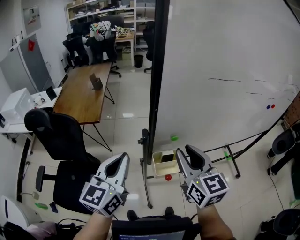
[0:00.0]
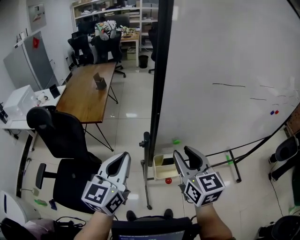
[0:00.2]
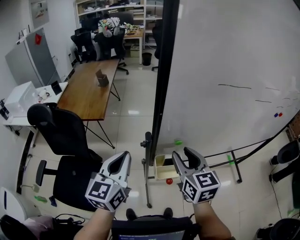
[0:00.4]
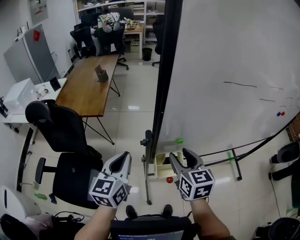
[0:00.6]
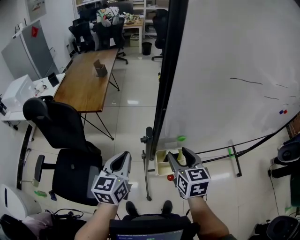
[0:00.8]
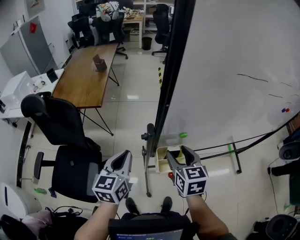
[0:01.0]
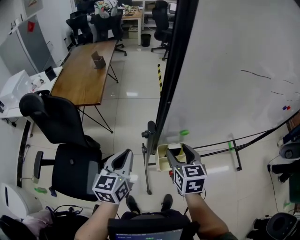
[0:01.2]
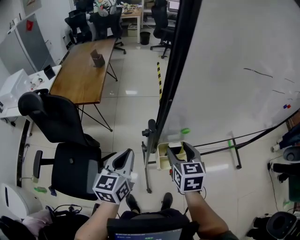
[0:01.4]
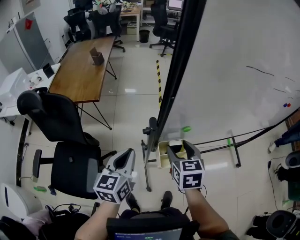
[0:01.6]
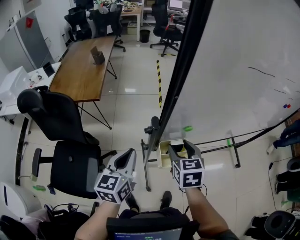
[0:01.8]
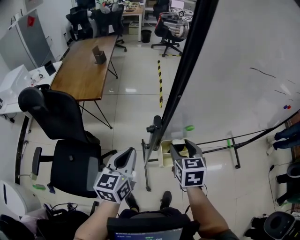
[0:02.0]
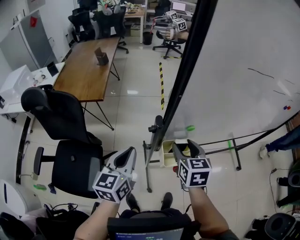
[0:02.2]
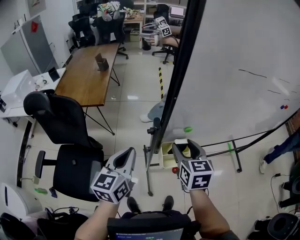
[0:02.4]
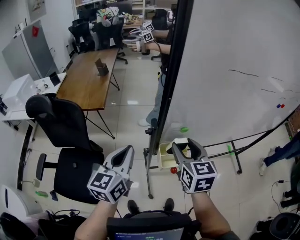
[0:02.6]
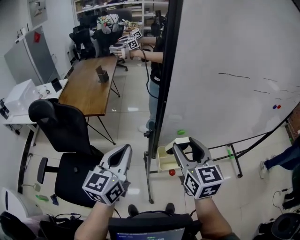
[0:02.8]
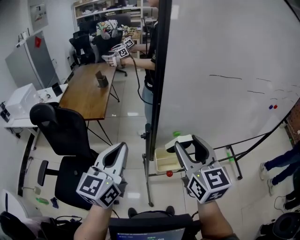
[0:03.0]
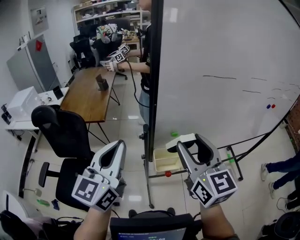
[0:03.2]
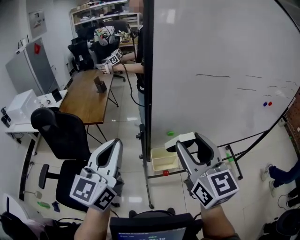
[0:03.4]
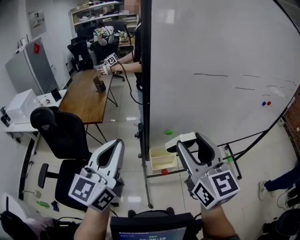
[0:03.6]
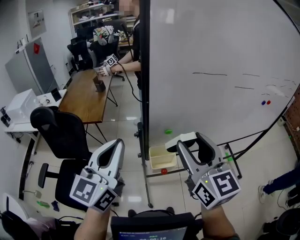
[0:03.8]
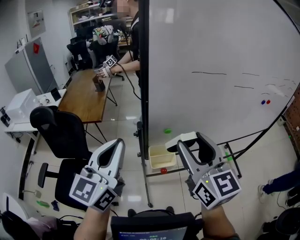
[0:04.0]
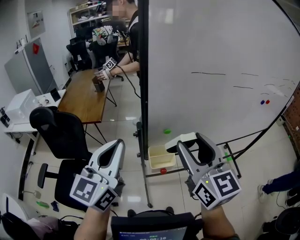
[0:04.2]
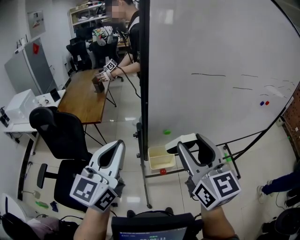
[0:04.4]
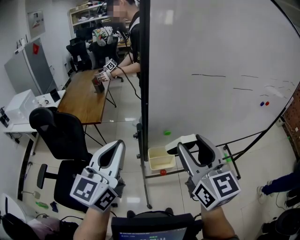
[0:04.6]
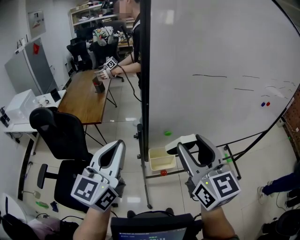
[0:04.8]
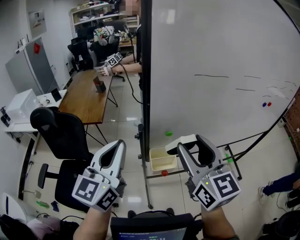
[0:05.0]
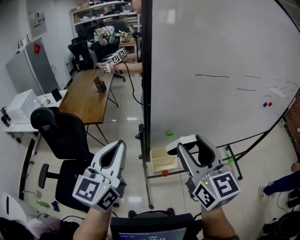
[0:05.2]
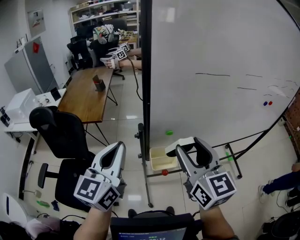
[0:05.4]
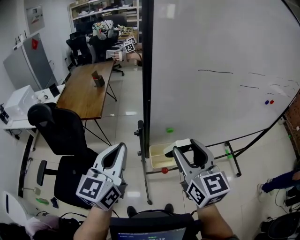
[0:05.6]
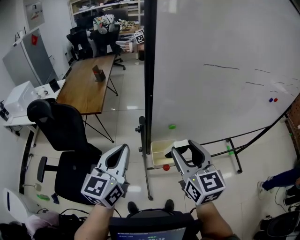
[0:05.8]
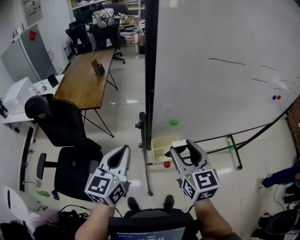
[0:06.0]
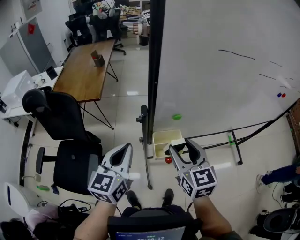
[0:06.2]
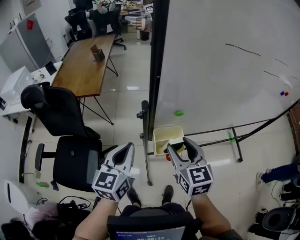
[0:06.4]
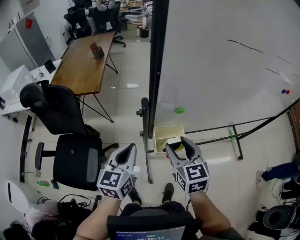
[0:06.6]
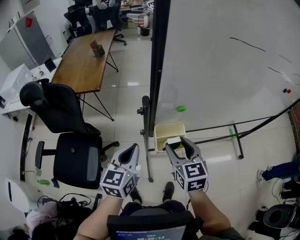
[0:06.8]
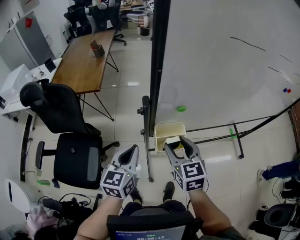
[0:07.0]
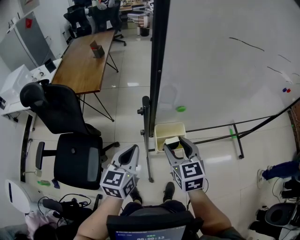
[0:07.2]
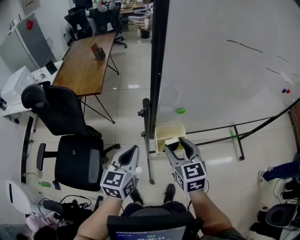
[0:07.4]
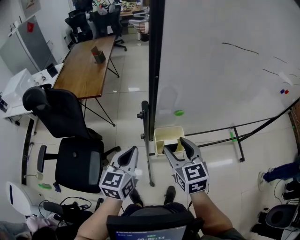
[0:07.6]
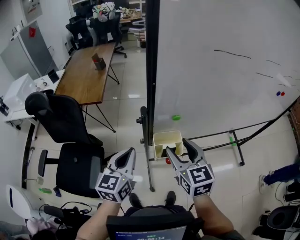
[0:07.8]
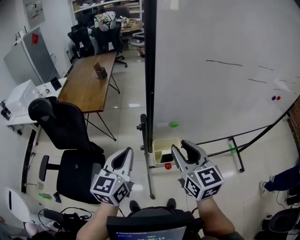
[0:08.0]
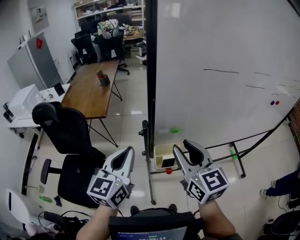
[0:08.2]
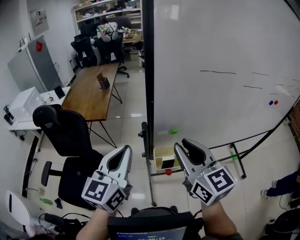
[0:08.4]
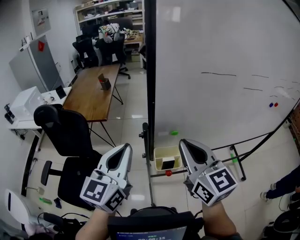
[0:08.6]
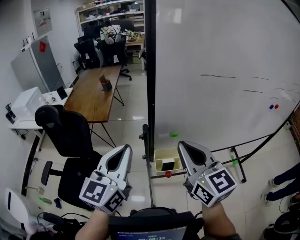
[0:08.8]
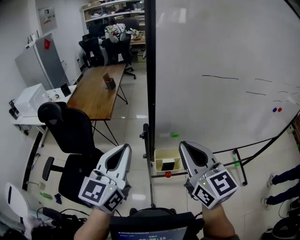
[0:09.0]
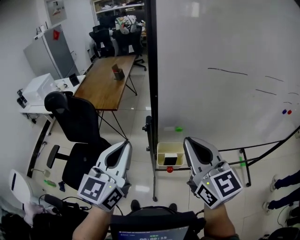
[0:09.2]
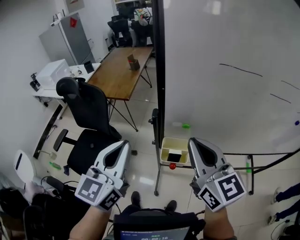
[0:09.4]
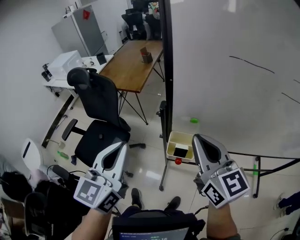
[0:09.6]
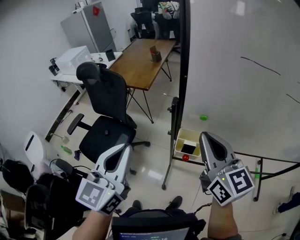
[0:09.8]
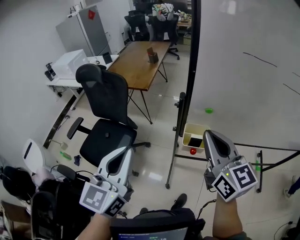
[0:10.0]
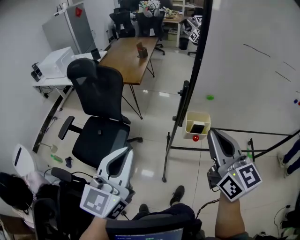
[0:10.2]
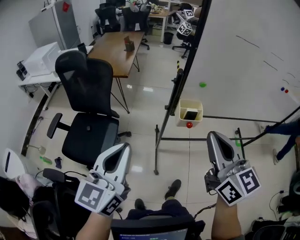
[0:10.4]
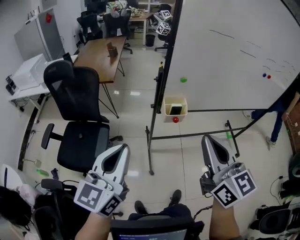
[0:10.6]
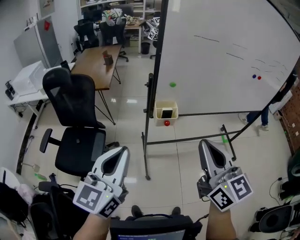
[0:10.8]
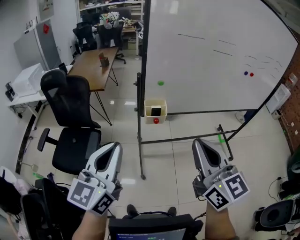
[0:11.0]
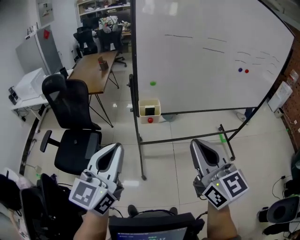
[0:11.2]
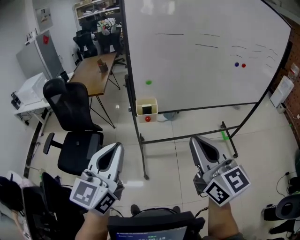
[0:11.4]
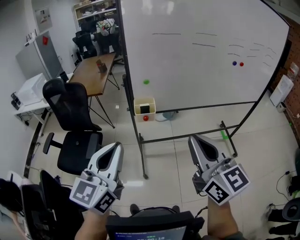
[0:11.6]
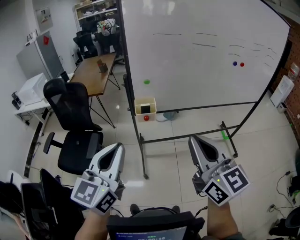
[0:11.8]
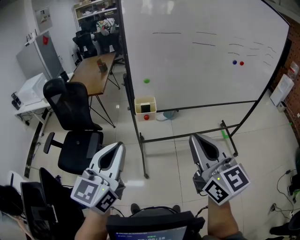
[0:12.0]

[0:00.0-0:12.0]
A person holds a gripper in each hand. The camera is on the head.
0:00.0 to 0:01.6: Both grippers move downward, some 15 cm. The right gripper rotates about 30 degrees, and opens.
0:01.6 to 0:03.0: The grippers both shift upward by some 20 cm. The right gripper swivels approximately 30 degrees.
0:03.0 to 0:04.4: The right gripper moves upward and backward, some 10 cm; the left gripper heads upward, covering approximately 5 cm.
0:04.4 to 0:06.0: The grippers both shift downward by roughly 15 cm.
0:06.0 to 0:07.6: The two grippers go roughly 10 cm downward.
0:07.6 to 0:09.0: Both grippers travel together upward, about 20 cm. The left gripper turns by some 20 degrees. Meanwhile the right gripper swivels about 30 degrees, and closes.
0:09.0 to 0:10.4: The grippers both shift backward and to the left by about 20 cm.
0:10.4 to 0:12.0: The grippers both shift to the right and backward by some 25 cm.

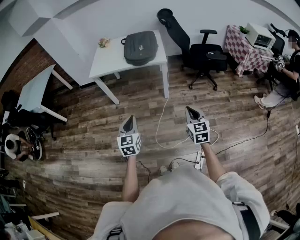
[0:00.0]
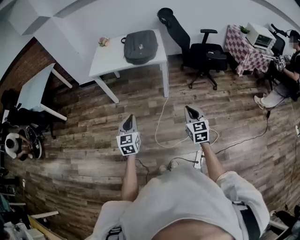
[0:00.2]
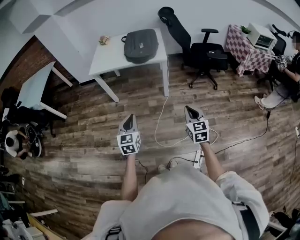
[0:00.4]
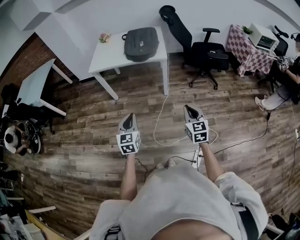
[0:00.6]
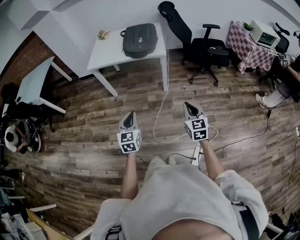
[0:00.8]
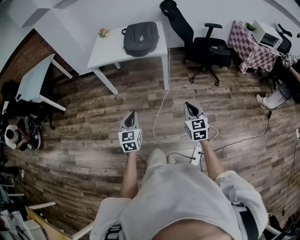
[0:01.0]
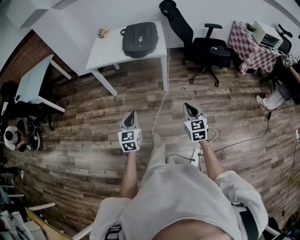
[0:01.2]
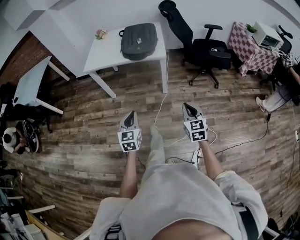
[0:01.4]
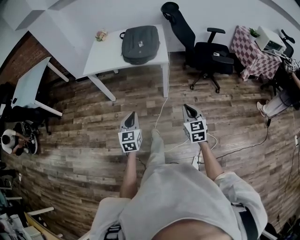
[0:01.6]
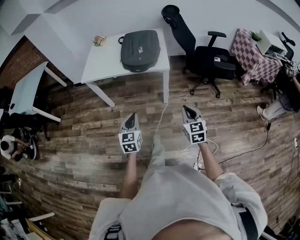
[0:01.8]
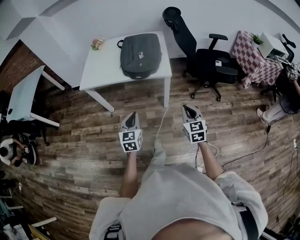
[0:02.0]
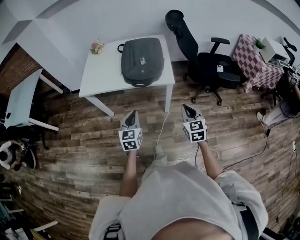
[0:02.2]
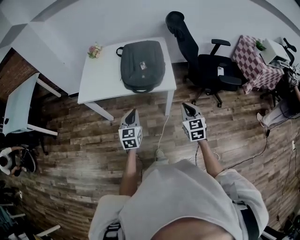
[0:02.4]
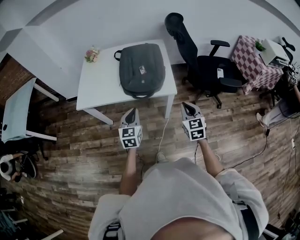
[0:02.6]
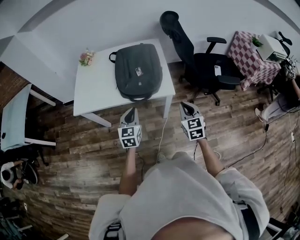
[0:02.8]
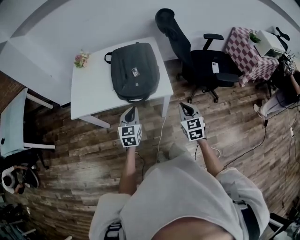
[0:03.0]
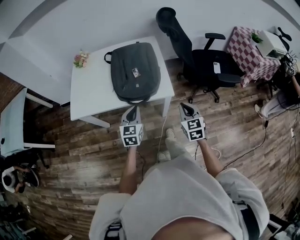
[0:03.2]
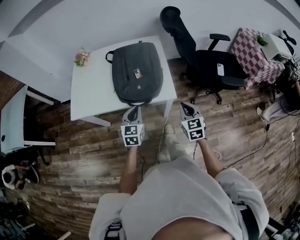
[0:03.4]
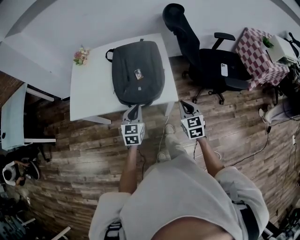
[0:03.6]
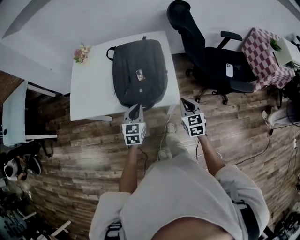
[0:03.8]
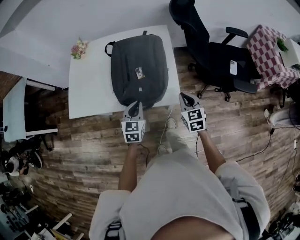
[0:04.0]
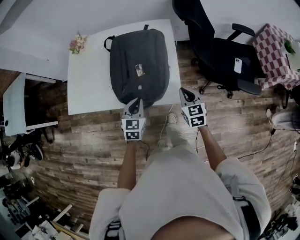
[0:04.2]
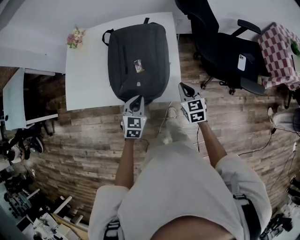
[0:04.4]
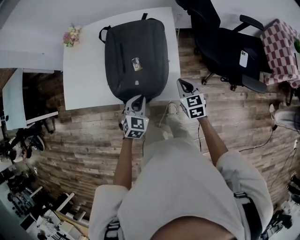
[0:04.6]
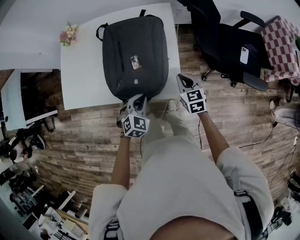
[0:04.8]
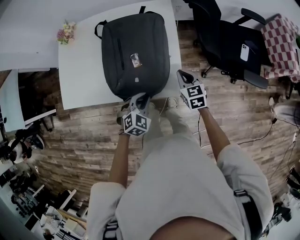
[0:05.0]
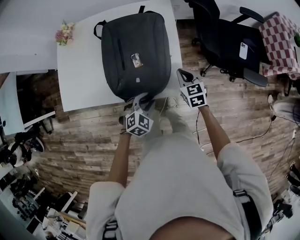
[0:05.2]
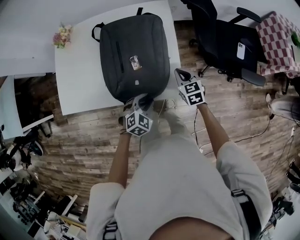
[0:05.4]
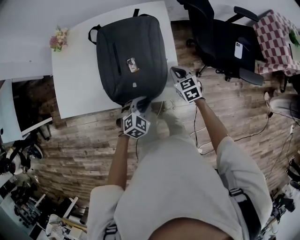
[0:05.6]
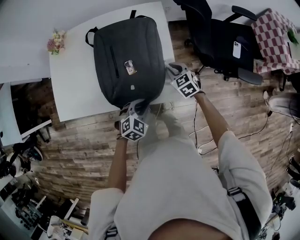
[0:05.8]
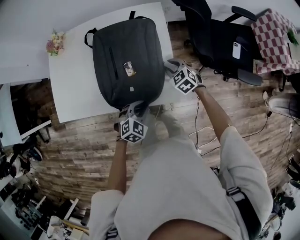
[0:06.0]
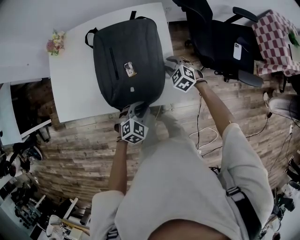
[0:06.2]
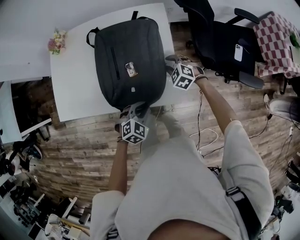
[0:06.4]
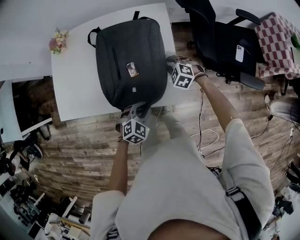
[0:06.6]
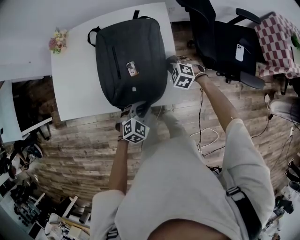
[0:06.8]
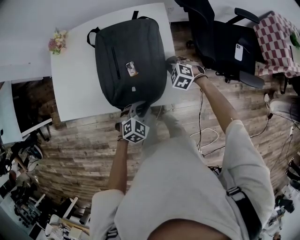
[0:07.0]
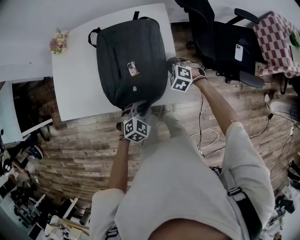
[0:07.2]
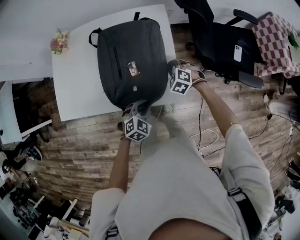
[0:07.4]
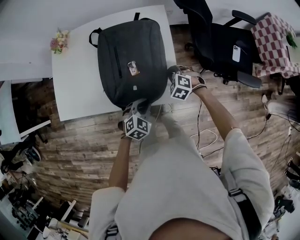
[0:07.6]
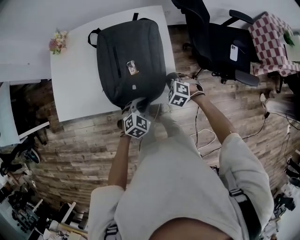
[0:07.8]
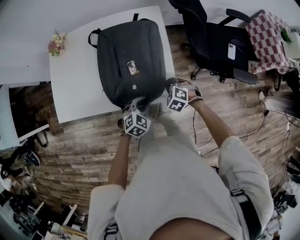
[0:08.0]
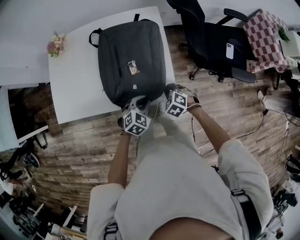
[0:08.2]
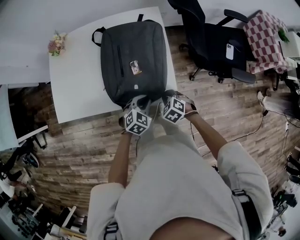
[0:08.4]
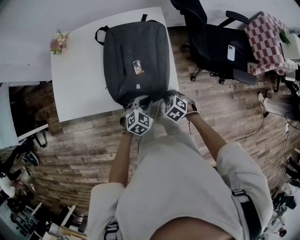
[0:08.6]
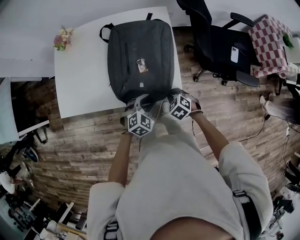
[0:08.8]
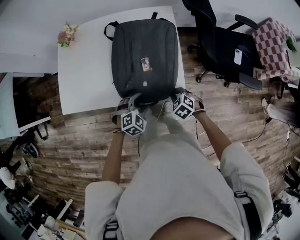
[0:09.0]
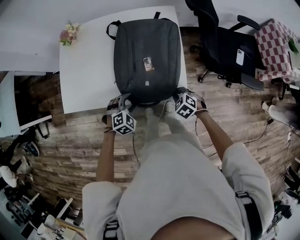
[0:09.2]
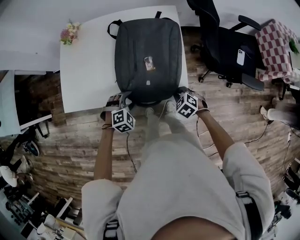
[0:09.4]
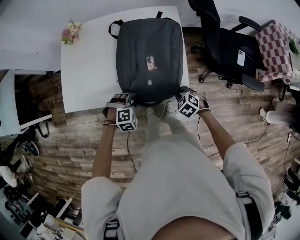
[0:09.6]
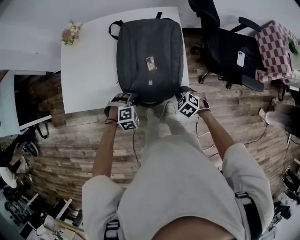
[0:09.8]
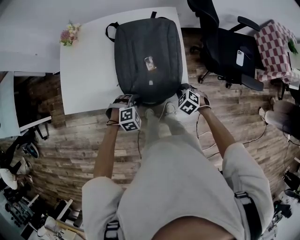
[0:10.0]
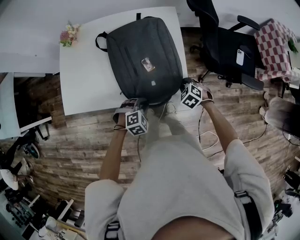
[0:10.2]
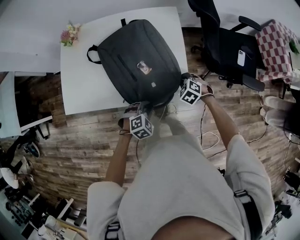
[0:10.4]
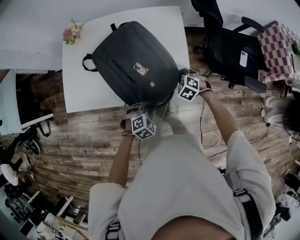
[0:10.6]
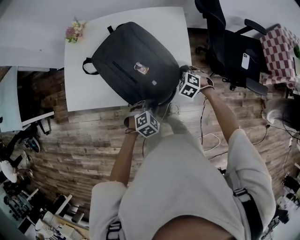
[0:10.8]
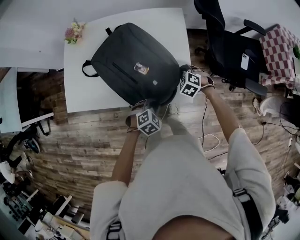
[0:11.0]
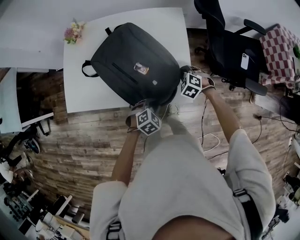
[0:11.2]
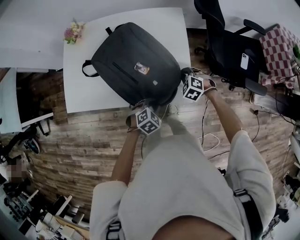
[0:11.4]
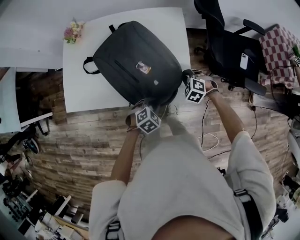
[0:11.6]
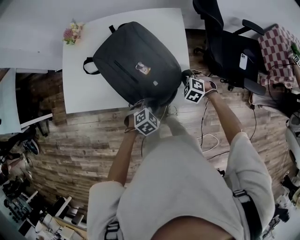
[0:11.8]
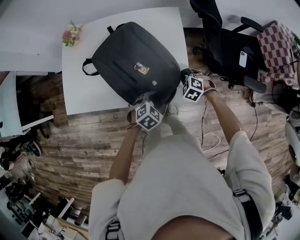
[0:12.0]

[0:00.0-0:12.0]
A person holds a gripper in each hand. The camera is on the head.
0:00.0 to 0:01.6: Both grippers travel together forward, roughly 10 cm.
0:01.6 to 0:03.0: The two grippers go roughly 40 cm forward.
0:03.0 to 0:04.4: The right gripper travels forward by about 25 cm; the left gripper goes some 20 cm forward and downward.
0:04.4 to 0:06.0: The left gripper goes roughly 5 cm downward, and rotates some 40 degrees; the right gripper is displaced forward and downward by some 15 cm, swivels approximately 30 degrees, and opens.
0:06.0 to 0:07.6: The right gripper rotates roughly 30 degrees, and closes up.
0:07.6 to 0:09.0: The right gripper shifts some 10 cm backward. The left gripper changes place by roughly 5 cm, and opens its fingers.
0:09.0 to 0:10.4: The left gripper moves about 5 cm to the left and comes back, and closes, while the right gripper travels forward by some 10 cm.
0:10.4 to 0:12.0: The left gripper shifts by about 5 cm, and opens its fingers.
